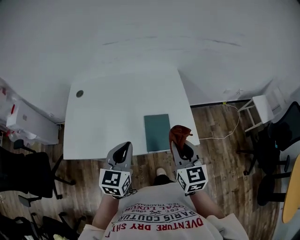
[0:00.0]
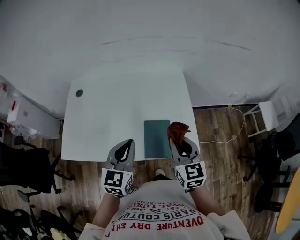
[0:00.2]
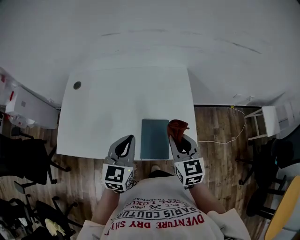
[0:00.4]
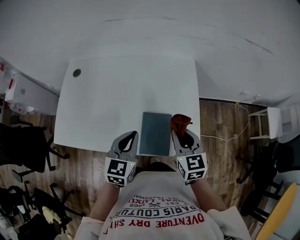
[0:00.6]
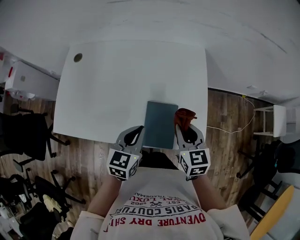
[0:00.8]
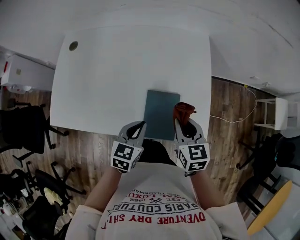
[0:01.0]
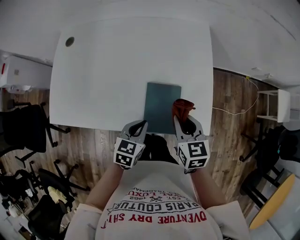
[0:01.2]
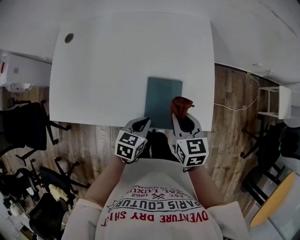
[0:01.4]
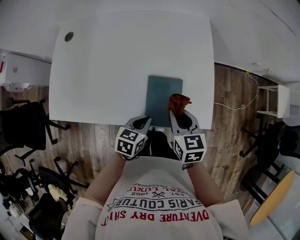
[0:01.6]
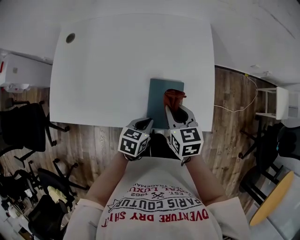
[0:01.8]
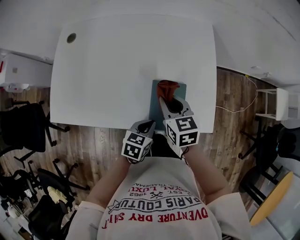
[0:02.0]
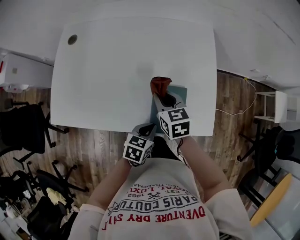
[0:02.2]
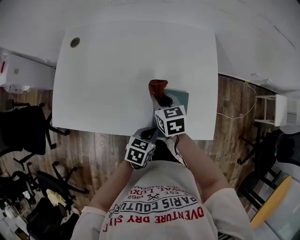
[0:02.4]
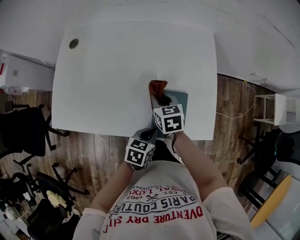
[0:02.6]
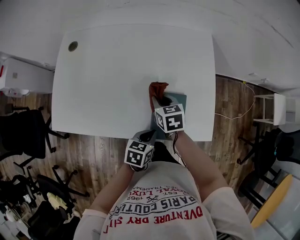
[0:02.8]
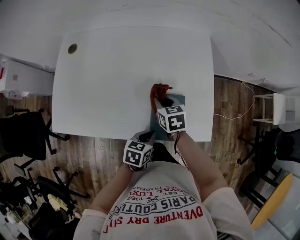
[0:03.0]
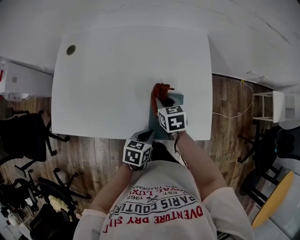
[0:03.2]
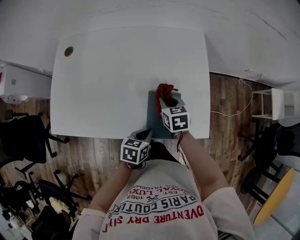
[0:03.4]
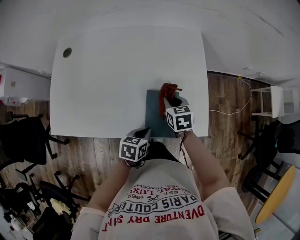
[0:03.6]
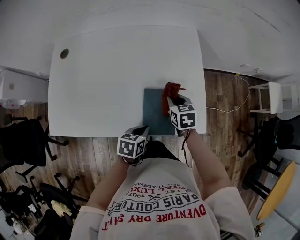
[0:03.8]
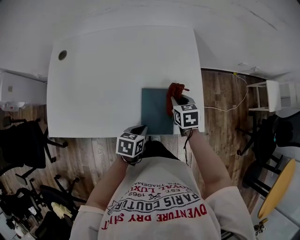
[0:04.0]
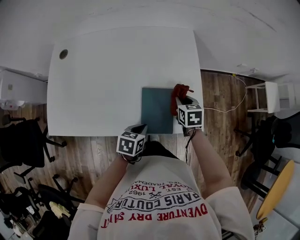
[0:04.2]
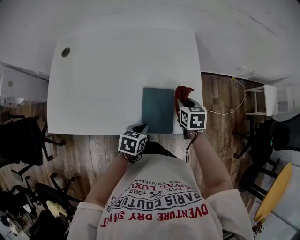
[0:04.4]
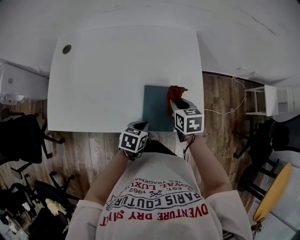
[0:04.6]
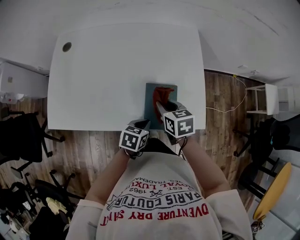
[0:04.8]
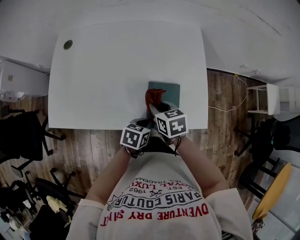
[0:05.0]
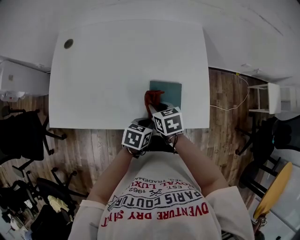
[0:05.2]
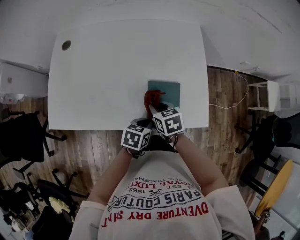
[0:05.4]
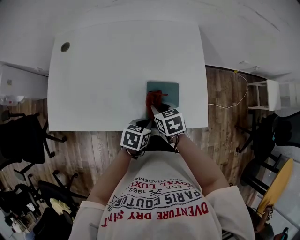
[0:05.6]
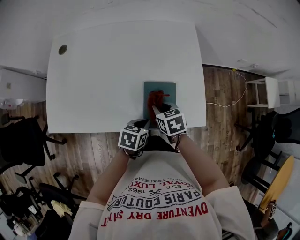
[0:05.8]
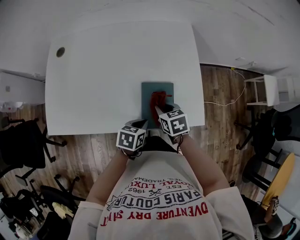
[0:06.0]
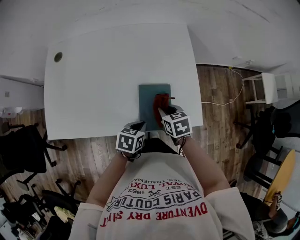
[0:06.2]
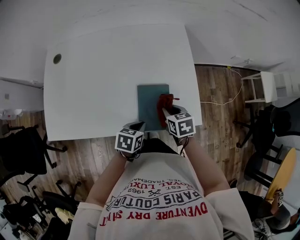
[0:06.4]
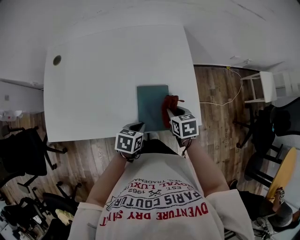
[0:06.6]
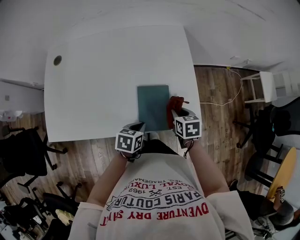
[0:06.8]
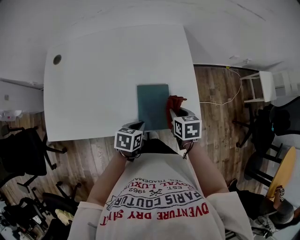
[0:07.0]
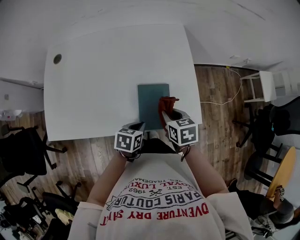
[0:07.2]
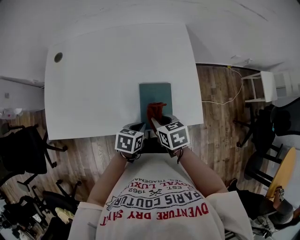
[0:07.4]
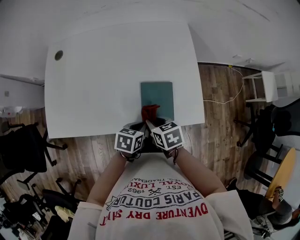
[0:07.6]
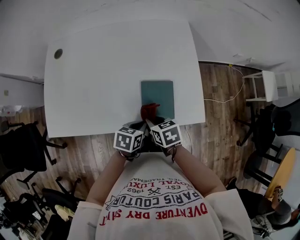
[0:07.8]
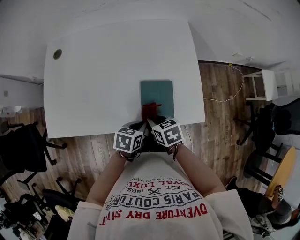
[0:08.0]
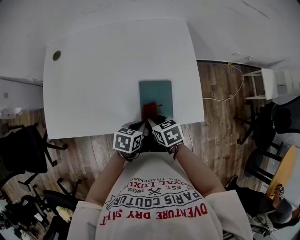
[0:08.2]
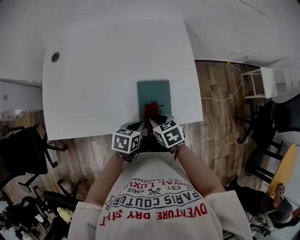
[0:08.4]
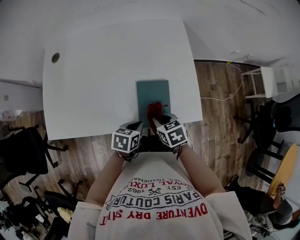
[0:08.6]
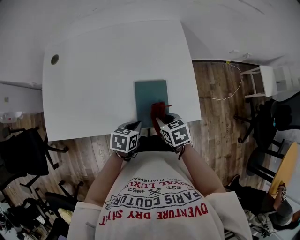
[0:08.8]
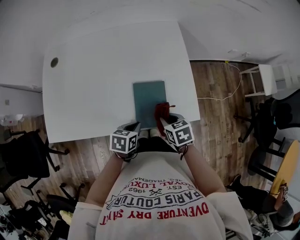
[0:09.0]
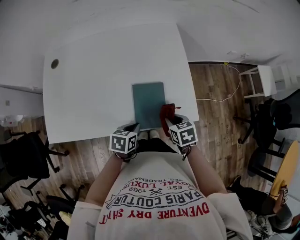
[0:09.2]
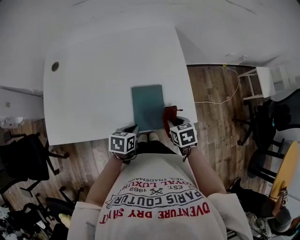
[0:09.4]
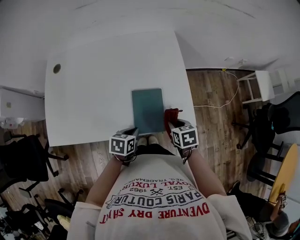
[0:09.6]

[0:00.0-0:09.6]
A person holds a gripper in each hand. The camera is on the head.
0:00.0 to 0:01.6: The left gripper travels downward by some 25 cm, and changes its angle by some 40 degrees, while the right gripper shifts about 20 cm downward and forward, and changes its angle by about 30 degrees.
0:01.6 to 0:03.2: The right gripper goes roughly 15 cm forward, to the left and downward.
0:03.2 to 0:04.8: The right gripper shifts approximately 5 cm backward, and goes to the right and returns, roughly 15 cm each way.
0:04.8 to 0:06.4: The right gripper is displaced to the right and downward by approximately 10 cm.
0:06.4 to 0:08.0: The right gripper goes roughly 10 cm to the left and backward.
0:08.0 to 0:09.6: The right gripper heads to the right, covering approximately 15 cm.

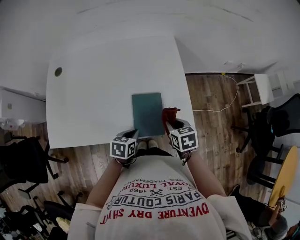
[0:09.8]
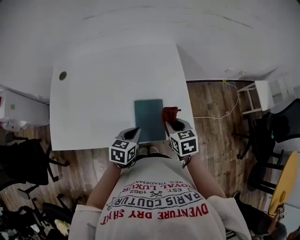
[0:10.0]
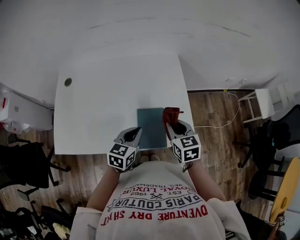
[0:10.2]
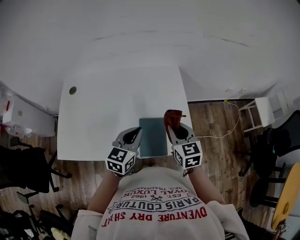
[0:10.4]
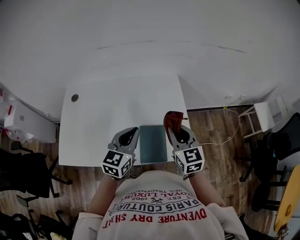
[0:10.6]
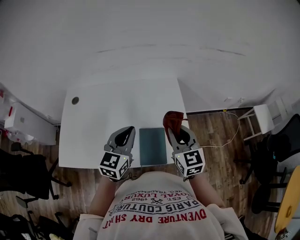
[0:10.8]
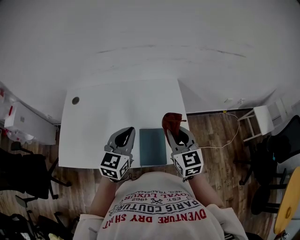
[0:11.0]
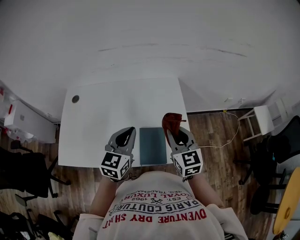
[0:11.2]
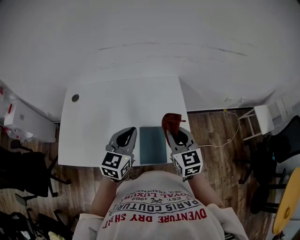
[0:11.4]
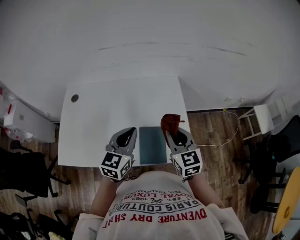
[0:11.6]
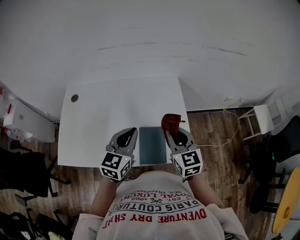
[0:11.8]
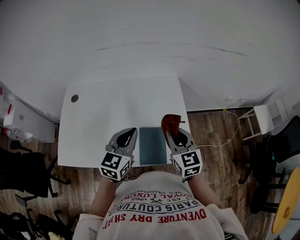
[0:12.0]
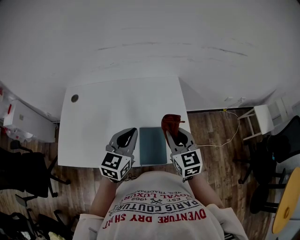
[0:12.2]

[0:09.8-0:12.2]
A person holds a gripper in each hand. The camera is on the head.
0:09.8 to 0:11.0: Both grippers travel together upward, some 25 cm. The right gripper points its fingers approximately 40 degrees further upward. Meanwhile the left gripper tilts its fingers roughly 40 degrees upward.
0:11.0 to 0:12.2: The grippers move only a little.

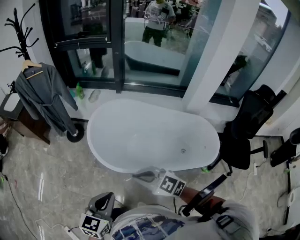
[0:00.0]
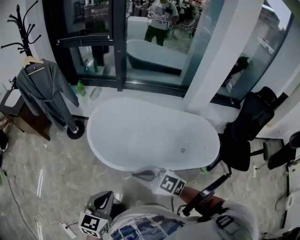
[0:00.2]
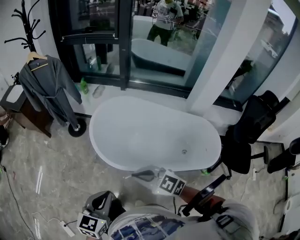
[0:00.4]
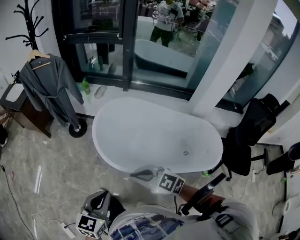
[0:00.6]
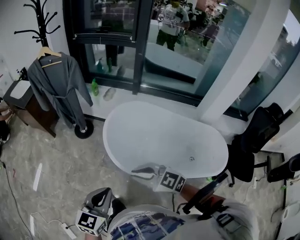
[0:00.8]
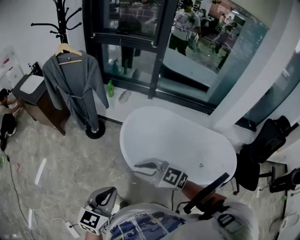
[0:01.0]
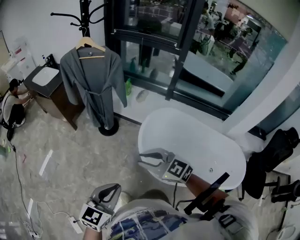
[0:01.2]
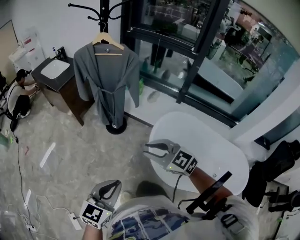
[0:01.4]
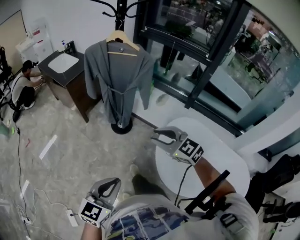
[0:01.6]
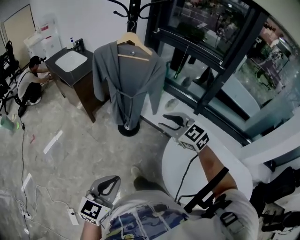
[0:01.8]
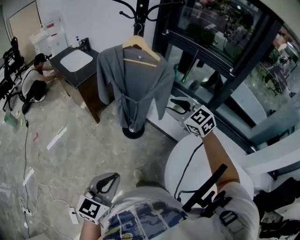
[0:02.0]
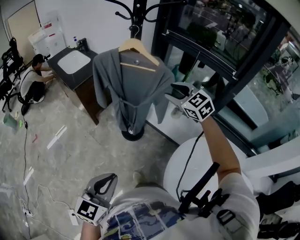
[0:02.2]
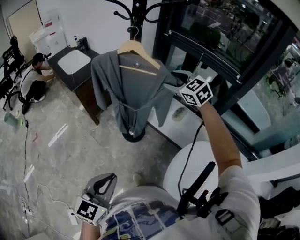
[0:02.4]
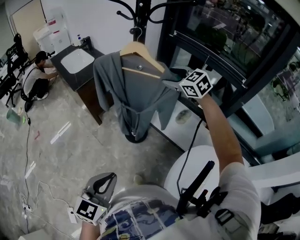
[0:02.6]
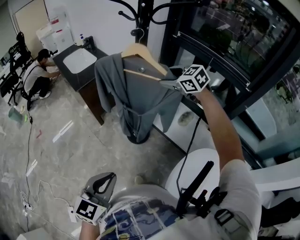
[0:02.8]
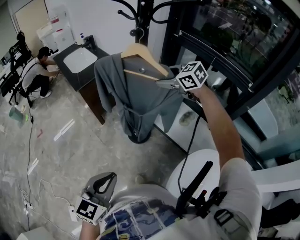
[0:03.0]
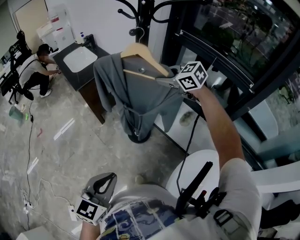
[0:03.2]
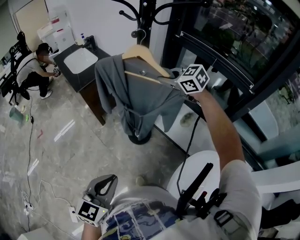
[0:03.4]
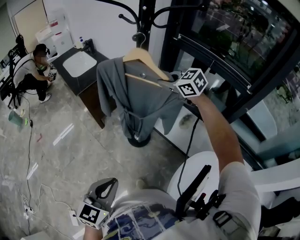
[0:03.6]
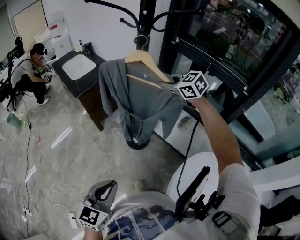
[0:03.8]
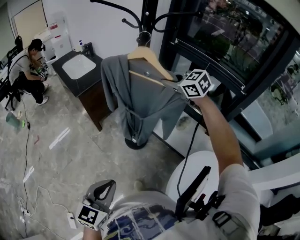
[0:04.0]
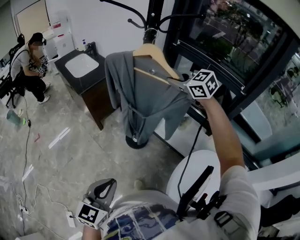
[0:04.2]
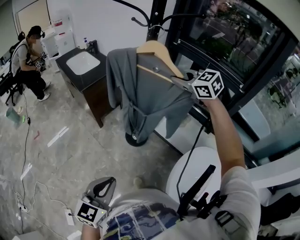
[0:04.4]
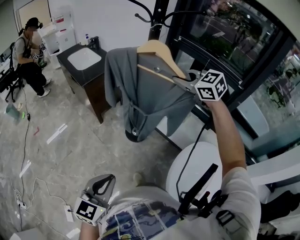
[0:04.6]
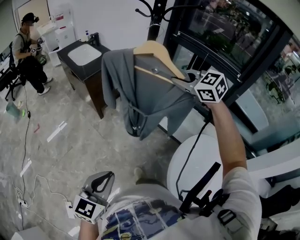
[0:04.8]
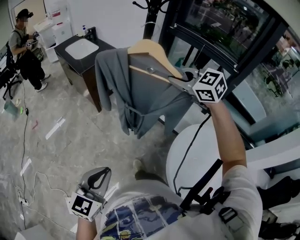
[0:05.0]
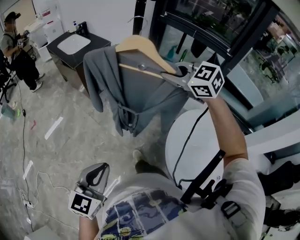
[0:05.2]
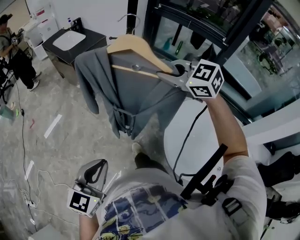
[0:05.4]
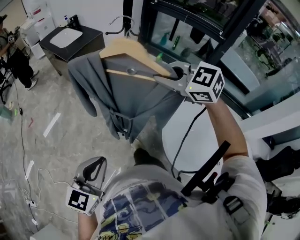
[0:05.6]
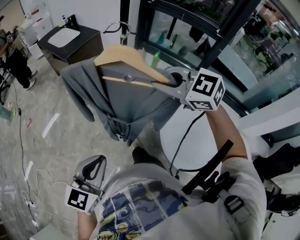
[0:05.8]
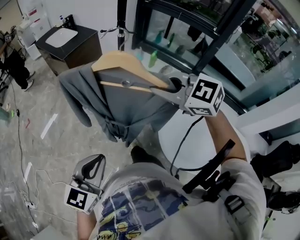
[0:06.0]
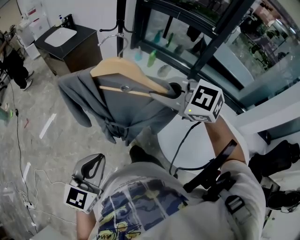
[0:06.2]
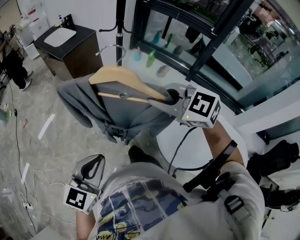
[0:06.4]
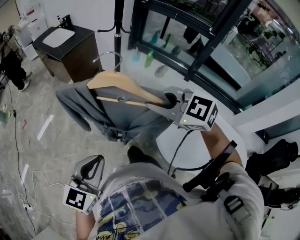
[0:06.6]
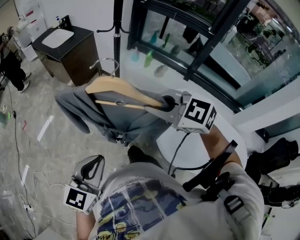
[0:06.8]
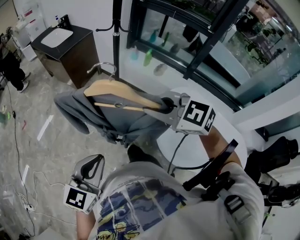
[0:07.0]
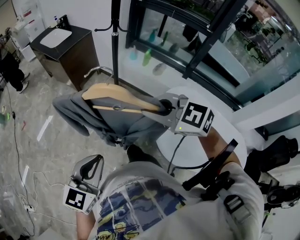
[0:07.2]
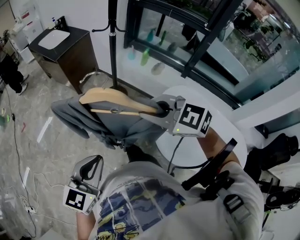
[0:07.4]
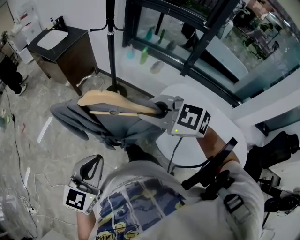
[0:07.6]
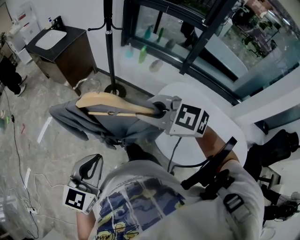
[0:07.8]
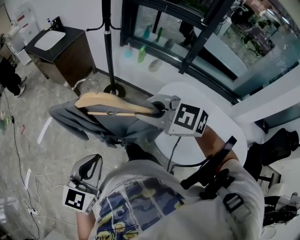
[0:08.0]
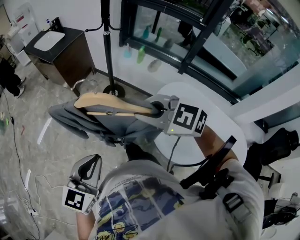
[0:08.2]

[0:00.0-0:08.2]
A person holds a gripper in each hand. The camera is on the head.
0:00.0 to 0:01.6: The left gripper heads to the left and forward, covering roughly 35 cm; the right gripper travels forward and to the left by some 50 cm, and opens its fingers.
0:01.6 to 0:03.2: The left gripper is displaced forward by approximately 25 cm. The right gripper is displaced forward by about 50 cm, and opens and closes again.
0:03.2 to 0:05.0: The left gripper shifts roughly 20 cm backward and to the left, while the right gripper is displaced backward by some 25 cm, and closes up.
0:05.0 to 0:06.6: The left gripper moves backward, some 10 cm. The right gripper goes roughly 25 cm backward.
0:06.6 to 0:08.2: The grippers make only small movements.

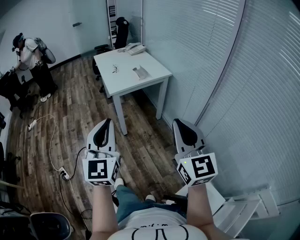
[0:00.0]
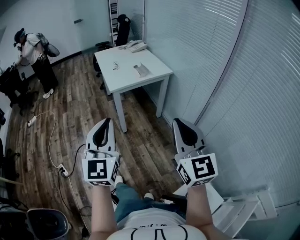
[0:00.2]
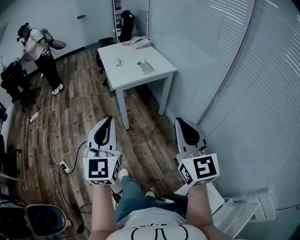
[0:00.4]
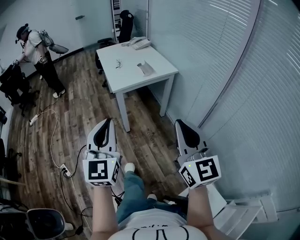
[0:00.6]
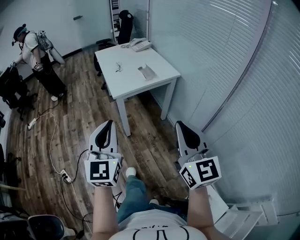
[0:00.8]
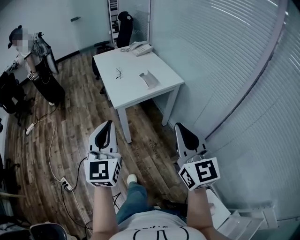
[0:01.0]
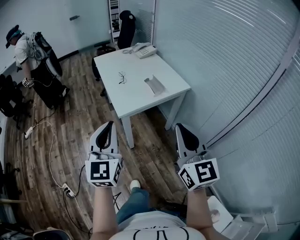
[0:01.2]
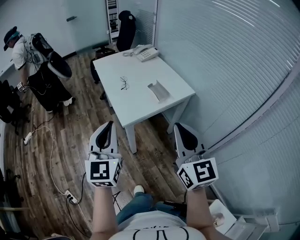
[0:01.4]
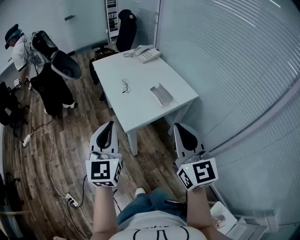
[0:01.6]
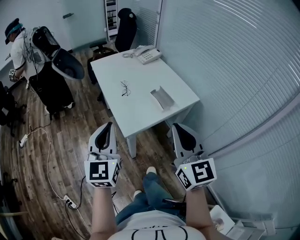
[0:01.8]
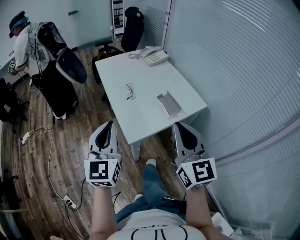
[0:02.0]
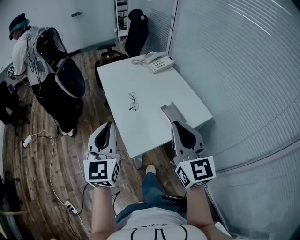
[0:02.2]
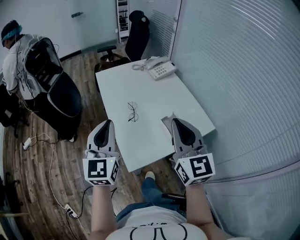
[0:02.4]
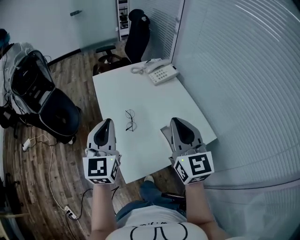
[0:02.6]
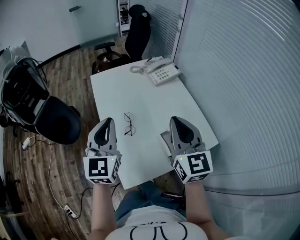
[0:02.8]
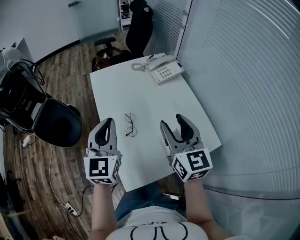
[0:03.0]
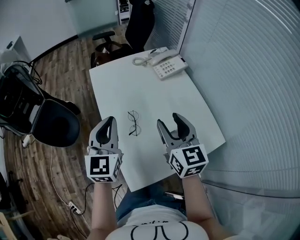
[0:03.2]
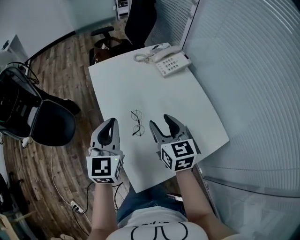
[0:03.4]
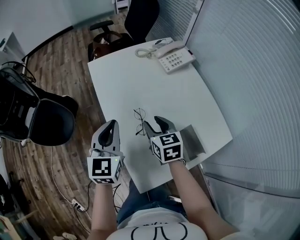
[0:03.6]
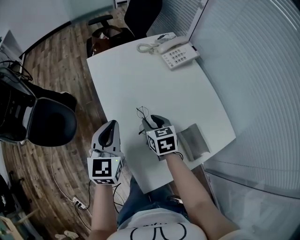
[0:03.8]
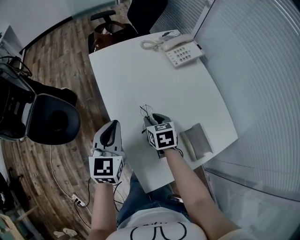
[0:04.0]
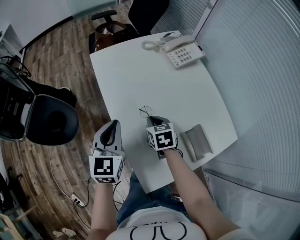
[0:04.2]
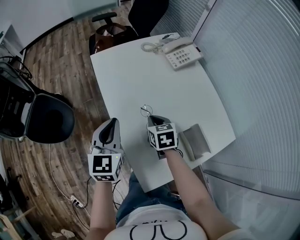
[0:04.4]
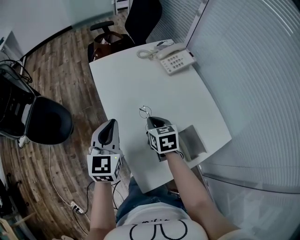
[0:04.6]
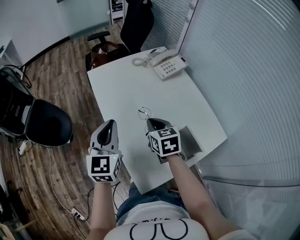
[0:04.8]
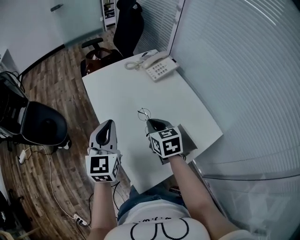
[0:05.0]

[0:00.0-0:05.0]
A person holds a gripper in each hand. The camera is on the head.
0:00.0 to 0:01.6: The two grippers travel together, forward, roughly 40 cm.
0:01.6 to 0:03.4: The pair of grippers is taken forward, roughly 50 cm. The right gripper changes its angle by approximately 30 degrees, and opens.
0:03.4 to 0:05.0: The right gripper goes downward and returns, roughly 20 cm each way, and closes; the left gripper reaches about 10 cm downward, then returns.
